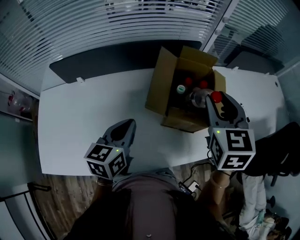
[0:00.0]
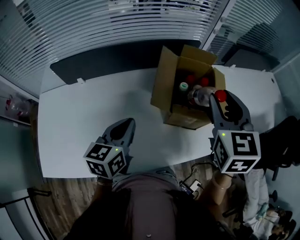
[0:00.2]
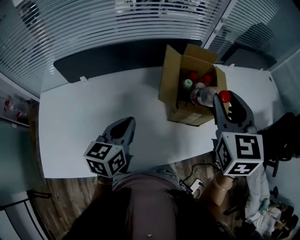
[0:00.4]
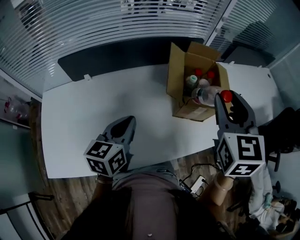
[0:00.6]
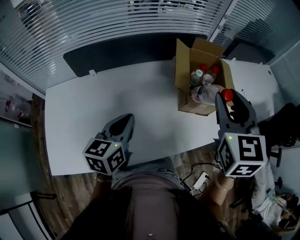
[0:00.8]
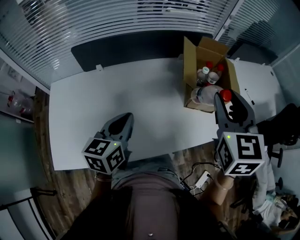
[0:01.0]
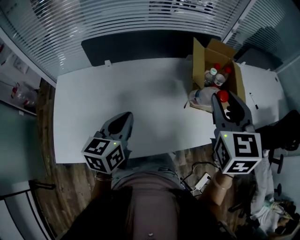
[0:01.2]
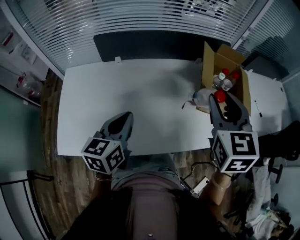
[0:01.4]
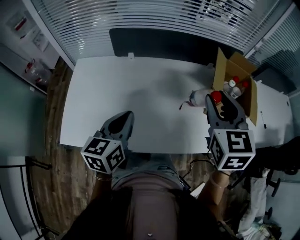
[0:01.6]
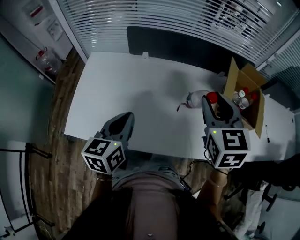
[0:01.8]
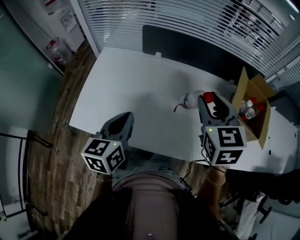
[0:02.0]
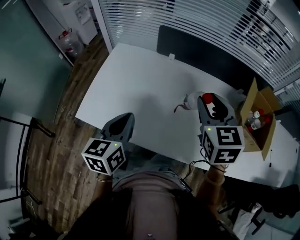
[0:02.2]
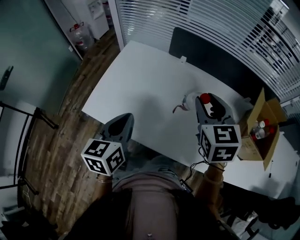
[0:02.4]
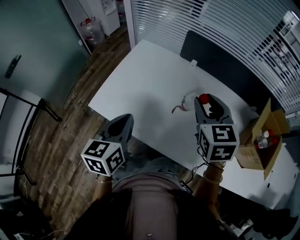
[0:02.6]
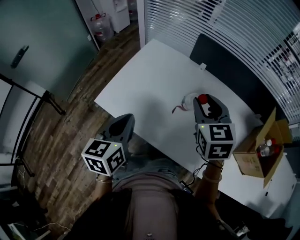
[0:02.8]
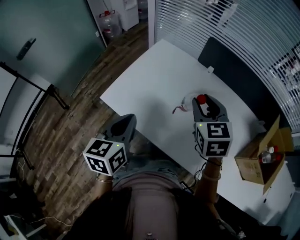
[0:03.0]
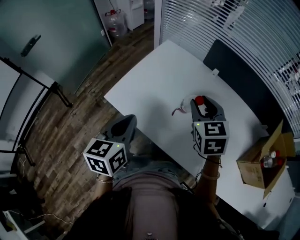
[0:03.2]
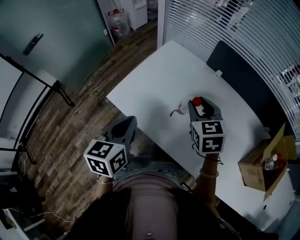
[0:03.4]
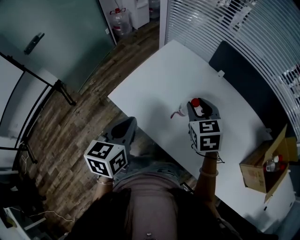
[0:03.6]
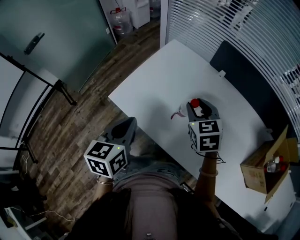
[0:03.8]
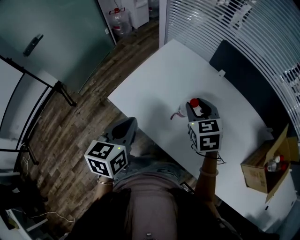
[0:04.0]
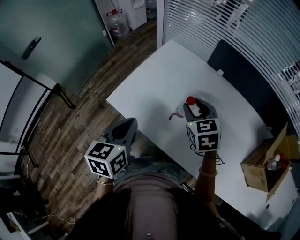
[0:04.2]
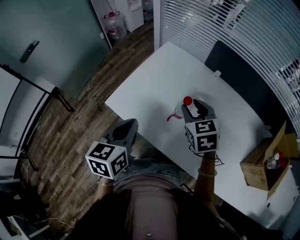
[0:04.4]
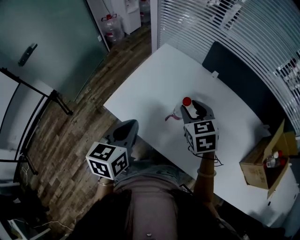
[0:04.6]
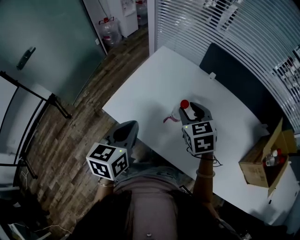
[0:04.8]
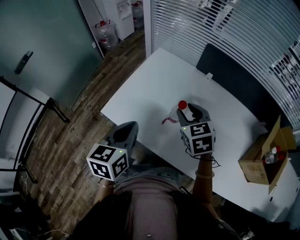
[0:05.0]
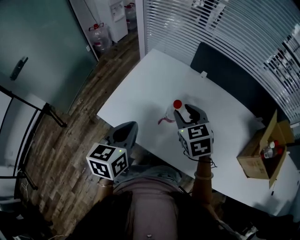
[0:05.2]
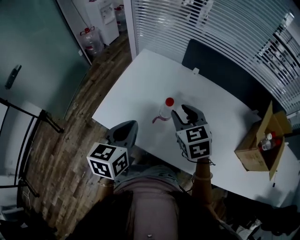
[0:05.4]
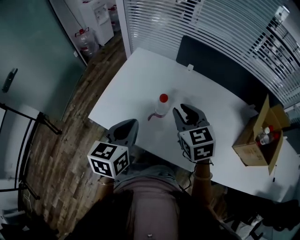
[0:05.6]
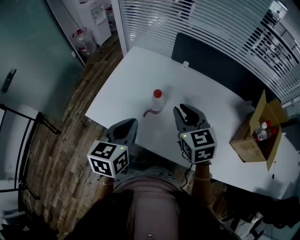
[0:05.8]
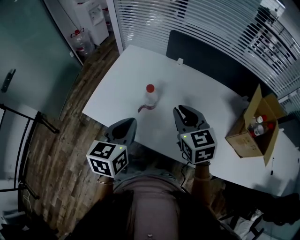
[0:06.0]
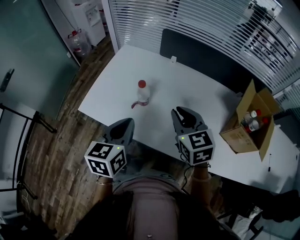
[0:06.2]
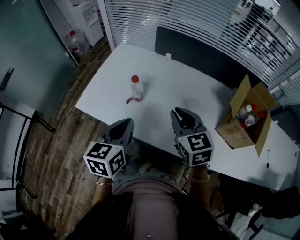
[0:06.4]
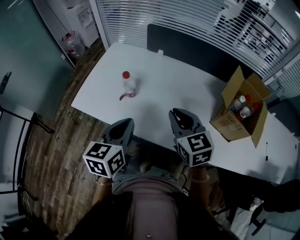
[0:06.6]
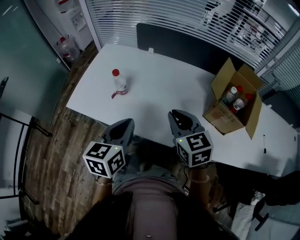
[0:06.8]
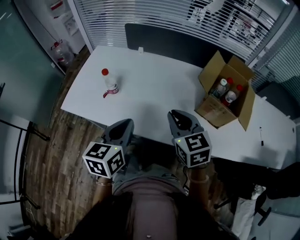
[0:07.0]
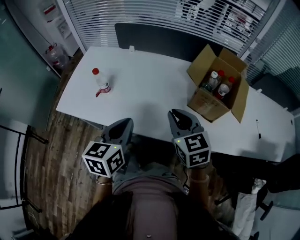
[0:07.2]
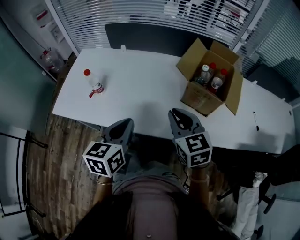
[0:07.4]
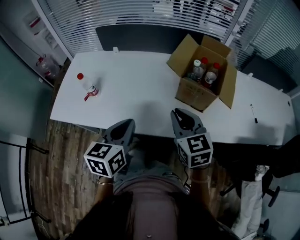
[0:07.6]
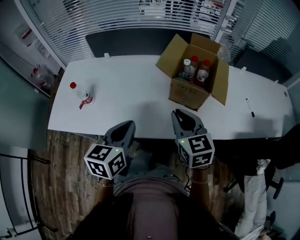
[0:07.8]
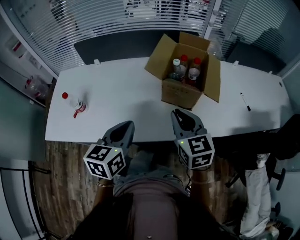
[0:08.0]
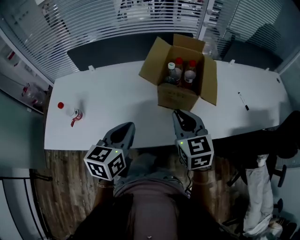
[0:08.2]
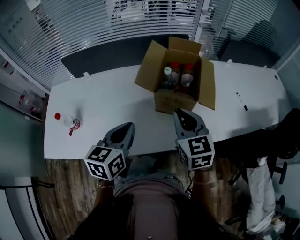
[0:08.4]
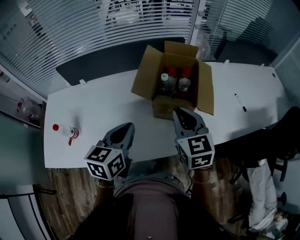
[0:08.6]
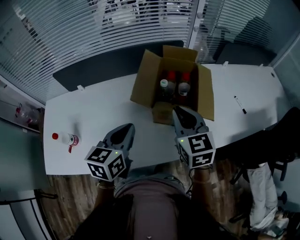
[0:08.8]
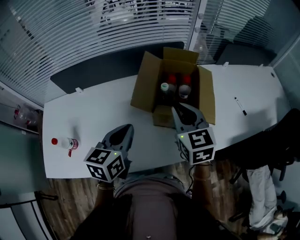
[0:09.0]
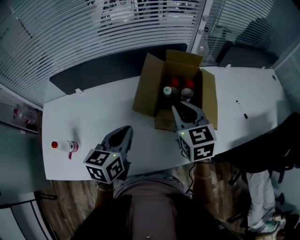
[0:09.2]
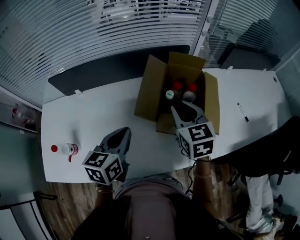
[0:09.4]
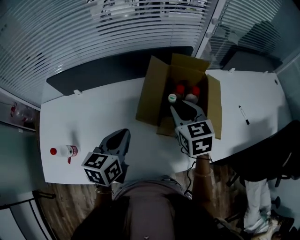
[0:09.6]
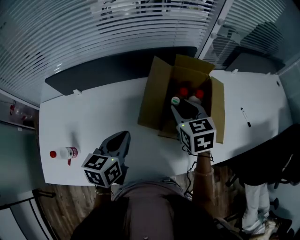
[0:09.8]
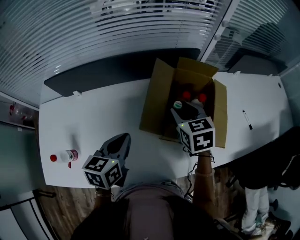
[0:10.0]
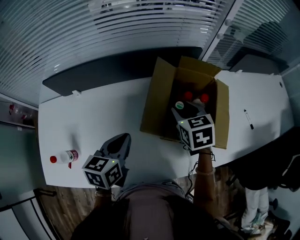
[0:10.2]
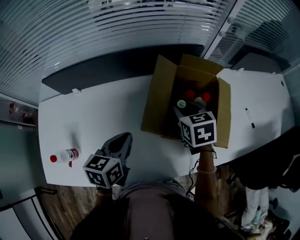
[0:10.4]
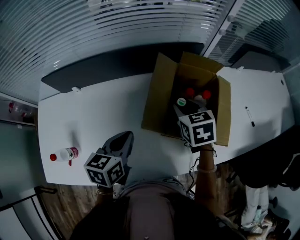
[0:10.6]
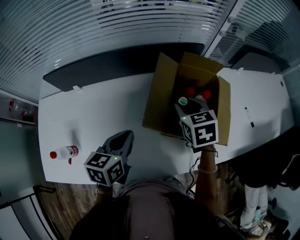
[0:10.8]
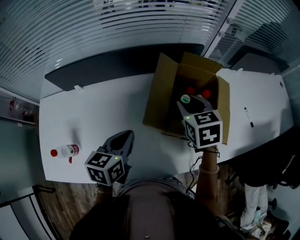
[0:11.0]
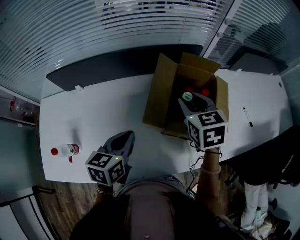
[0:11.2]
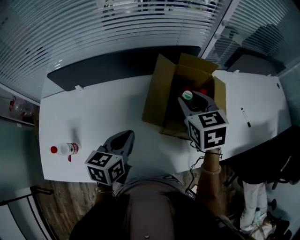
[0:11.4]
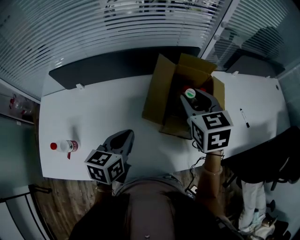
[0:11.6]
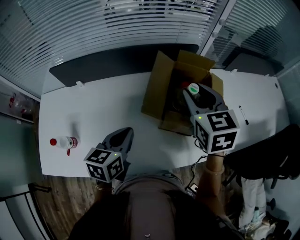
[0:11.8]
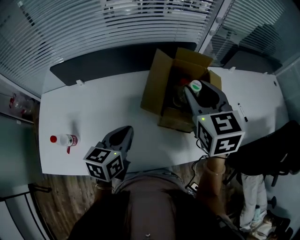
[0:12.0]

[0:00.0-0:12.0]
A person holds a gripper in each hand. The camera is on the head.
0:00.0 to 0:01.6: The two grippers go some 30 cm to the left and backward.
0:01.6 to 0:03.0: The right gripper changes place by some 30 cm, and rotates approximately 40 degrees. Meanwhile the left gripper shifts by some 20 cm, and changes its angle by roughly 40 degrees.
0:03.0 to 0:04.4: The right gripper goes approximately 10 cm downward and to the left.
0:04.4 to 0:06.0: The left gripper moves to the right, roughly 10 cm; the right gripper moves backward and to the right, roughly 15 cm, and closes its fingers.
0:06.0 to 0:07.6: Both grippers move to the right and backward, roughly 35 cm.
0:07.6 to 0:09.0: The left gripper travels forward by roughly 20 cm; the right gripper goes some 20 cm forward and to the right.
0:09.0 to 0:10.4: The left gripper is displaced forward, downward and to the left by roughly 10 cm, while the right gripper travels forward and downward by approximately 15 cm, turns by about 30 degrees, and opens its fingers.
0:10.4 to 0:12.0: The right gripper travels upward by roughly 20 cm, and swivels some 30 degrees. Meanwhile the left gripper shifts approximately 5 cm backward.

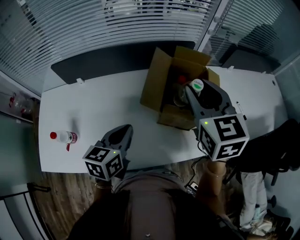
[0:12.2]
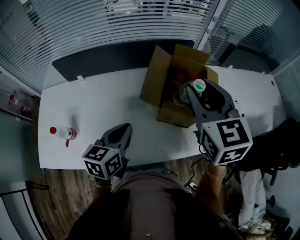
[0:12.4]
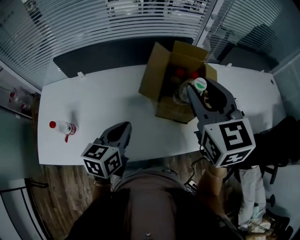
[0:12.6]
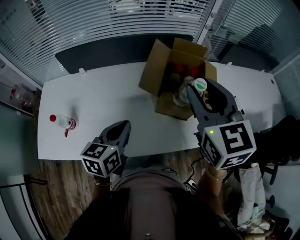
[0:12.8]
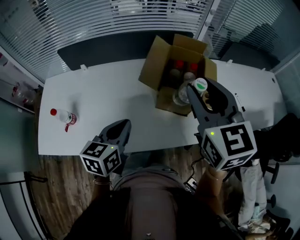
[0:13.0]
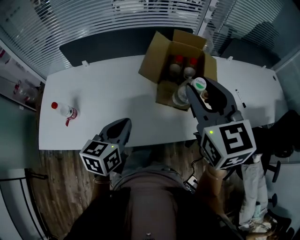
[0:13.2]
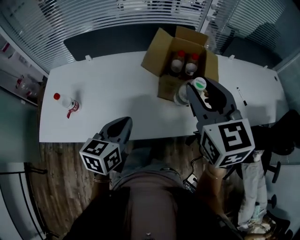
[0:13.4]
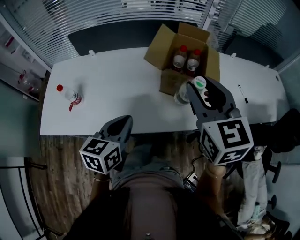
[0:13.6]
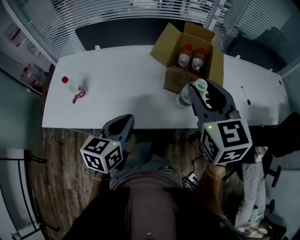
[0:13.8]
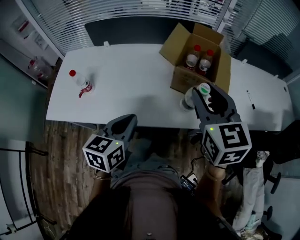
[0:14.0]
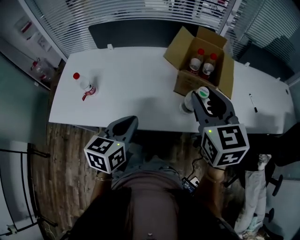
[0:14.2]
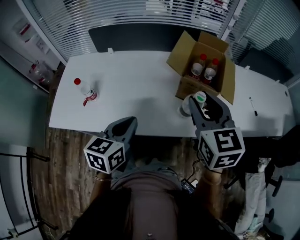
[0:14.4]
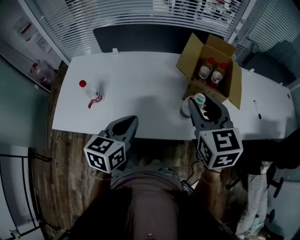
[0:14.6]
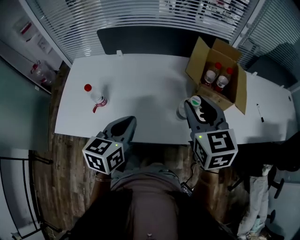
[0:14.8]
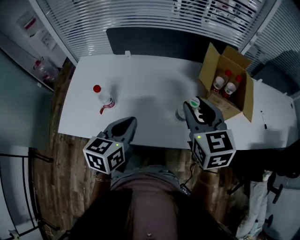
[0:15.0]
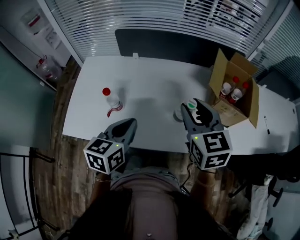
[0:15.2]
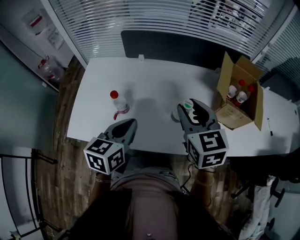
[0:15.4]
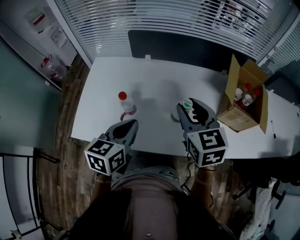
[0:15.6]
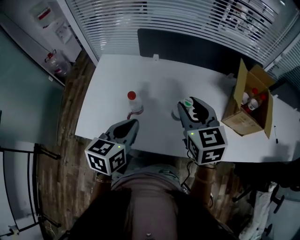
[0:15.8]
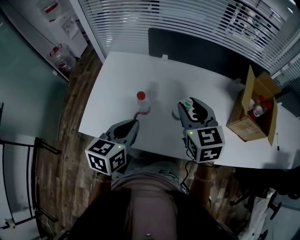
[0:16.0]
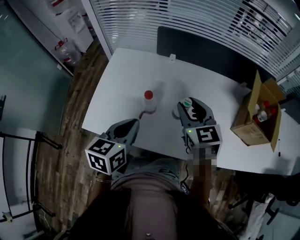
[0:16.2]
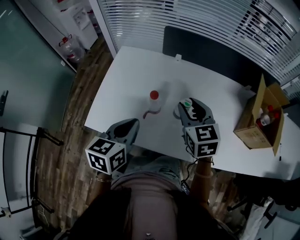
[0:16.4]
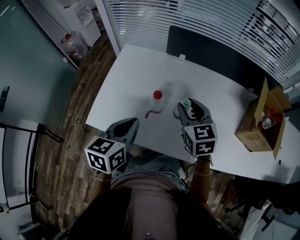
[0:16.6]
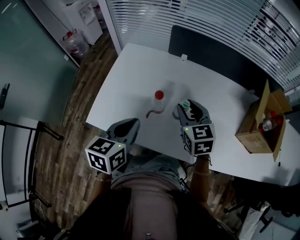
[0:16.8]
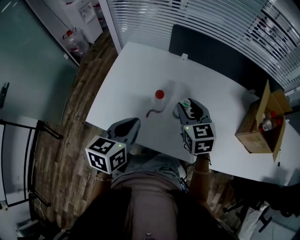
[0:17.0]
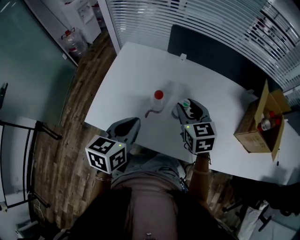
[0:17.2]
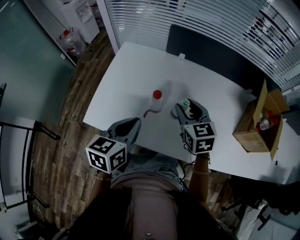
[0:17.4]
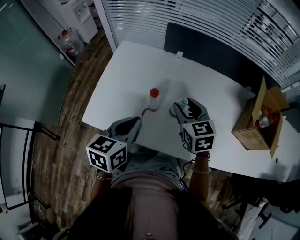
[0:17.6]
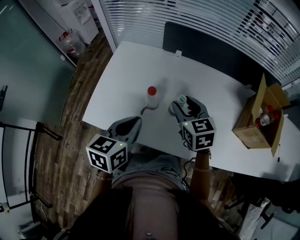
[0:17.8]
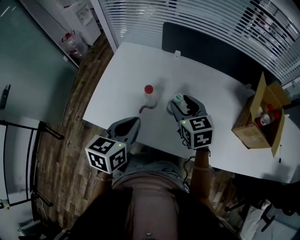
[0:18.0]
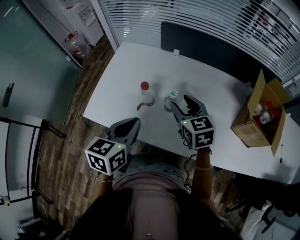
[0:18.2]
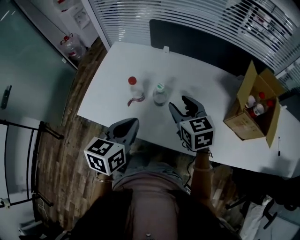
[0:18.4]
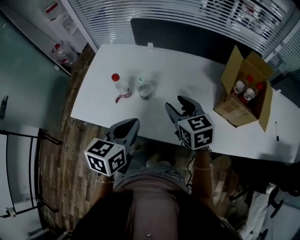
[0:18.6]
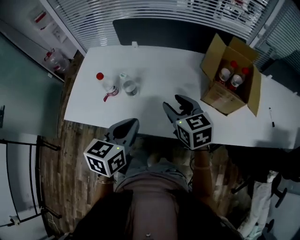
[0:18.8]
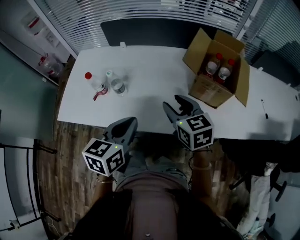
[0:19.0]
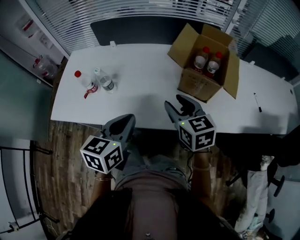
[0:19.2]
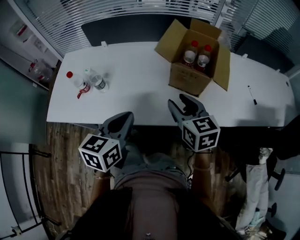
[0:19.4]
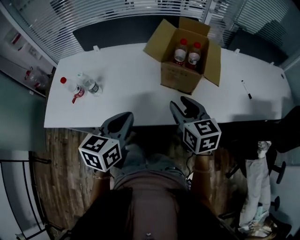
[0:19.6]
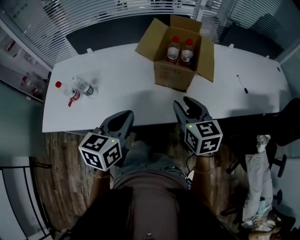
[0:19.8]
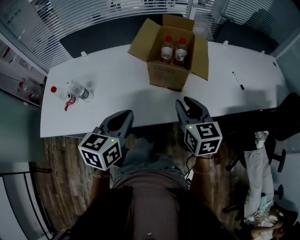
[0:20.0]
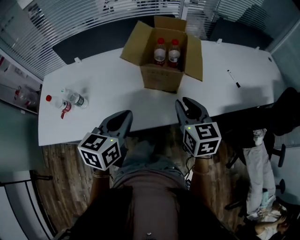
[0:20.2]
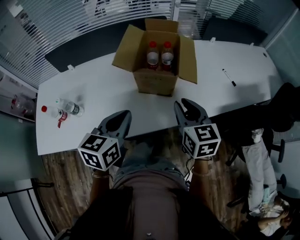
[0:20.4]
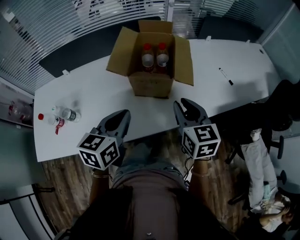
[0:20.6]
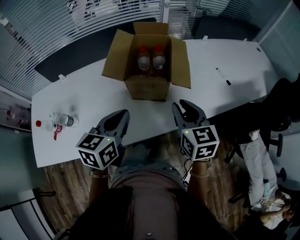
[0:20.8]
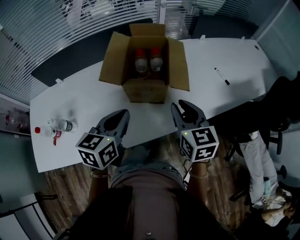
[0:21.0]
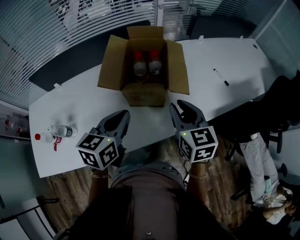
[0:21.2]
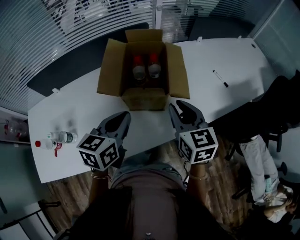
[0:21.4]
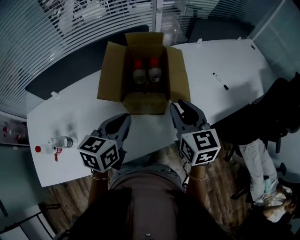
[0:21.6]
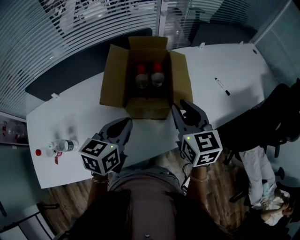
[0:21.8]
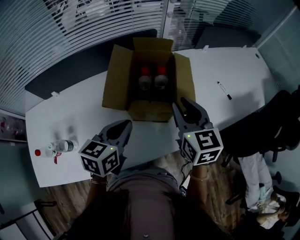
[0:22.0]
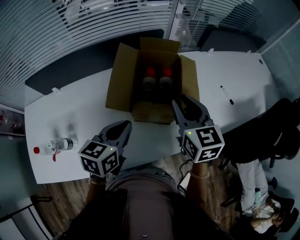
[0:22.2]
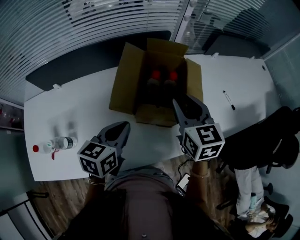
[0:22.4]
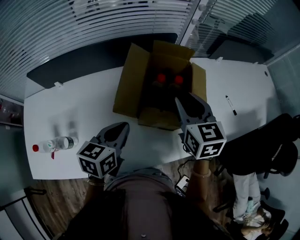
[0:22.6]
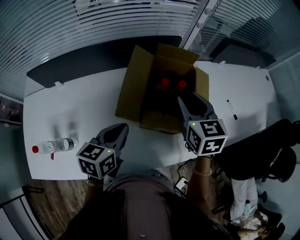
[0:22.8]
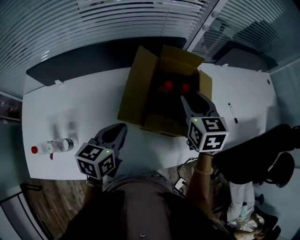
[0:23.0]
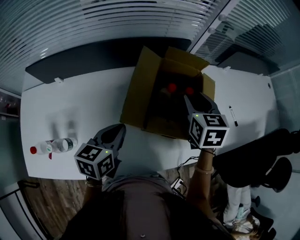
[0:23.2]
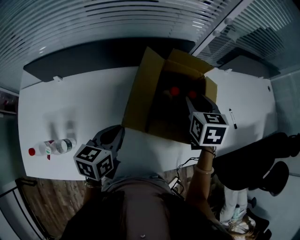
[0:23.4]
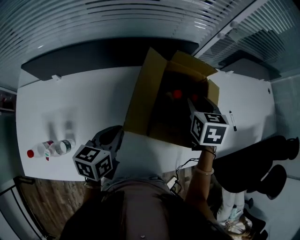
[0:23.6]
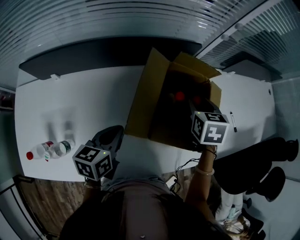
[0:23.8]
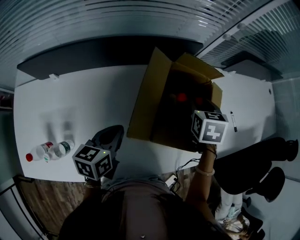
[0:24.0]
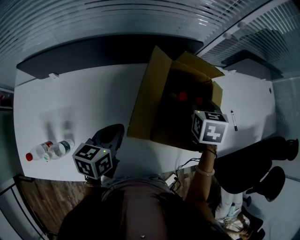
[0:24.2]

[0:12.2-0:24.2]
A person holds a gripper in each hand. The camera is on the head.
0:12.2 to 0:13.8: The grippers both shift backward by approximately 20 cm.
0:13.8 to 0:15.2: Both grippers move to the left, about 25 cm.
0:15.2 to 0:16.6: The right gripper travels to the left and downward by some 25 cm. Meanwhile the left gripper travels to the left by about 20 cm.
0:16.6 to 0:18.2: The left gripper heads to the right, covering some 5 cm.
0:18.2 to 0:19.8: The right gripper shifts roughly 50 cm to the right and backward, and swivels some 30 degrees; the left gripper moves to the right, about 35 cm, and changes its angle by some 20 degrees.
0:19.8 to 0:21.2: The right gripper shifts approximately 10 cm forward and to the right; the left gripper is displaced forward by some 15 cm.
0:21.2 to 0:22.6: The left gripper travels to the left and forward by some 10 cm, while the right gripper is displaced forward and to the left by approximately 20 cm.
0:22.6 to 0:24.2: The right gripper is displaced forward and downward by approximately 15 cm, and rotates roughly 30 degrees. The left gripper is displaced to the left and downward by some 10 cm.
